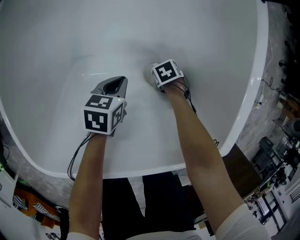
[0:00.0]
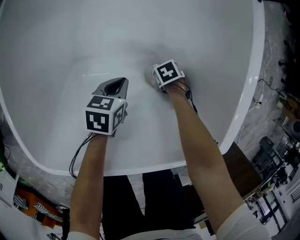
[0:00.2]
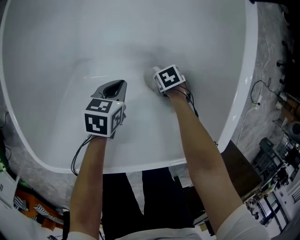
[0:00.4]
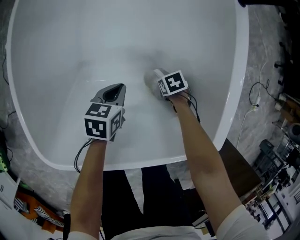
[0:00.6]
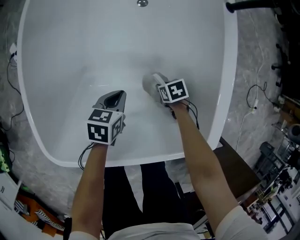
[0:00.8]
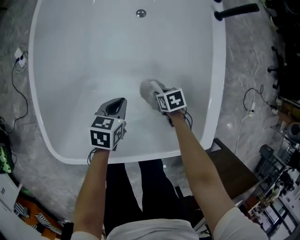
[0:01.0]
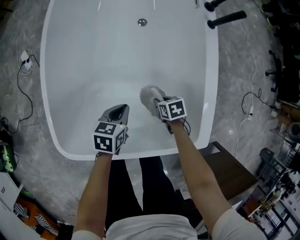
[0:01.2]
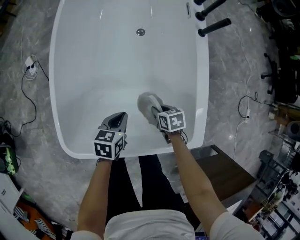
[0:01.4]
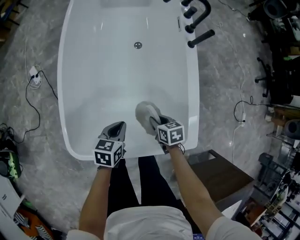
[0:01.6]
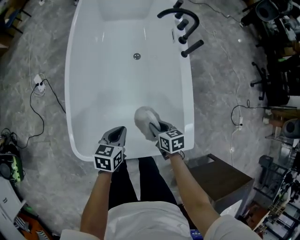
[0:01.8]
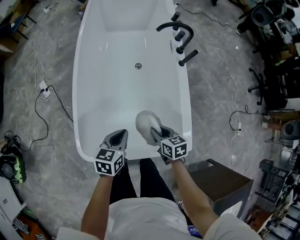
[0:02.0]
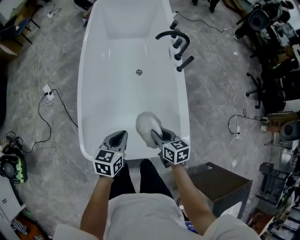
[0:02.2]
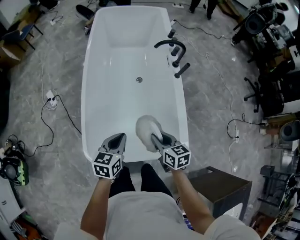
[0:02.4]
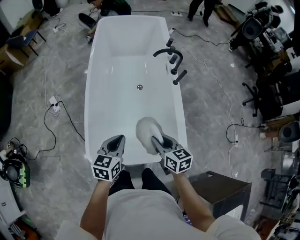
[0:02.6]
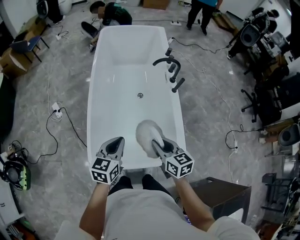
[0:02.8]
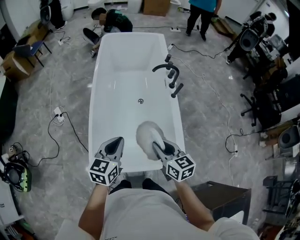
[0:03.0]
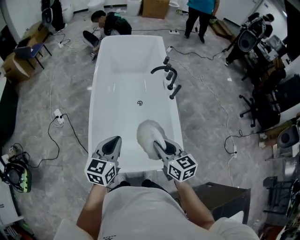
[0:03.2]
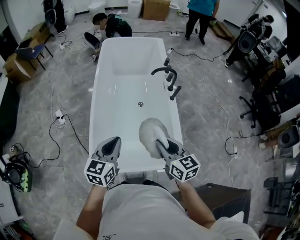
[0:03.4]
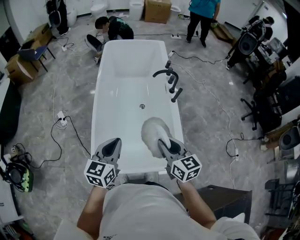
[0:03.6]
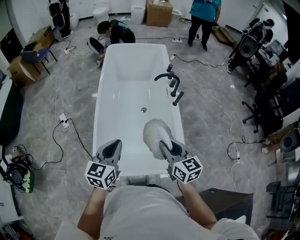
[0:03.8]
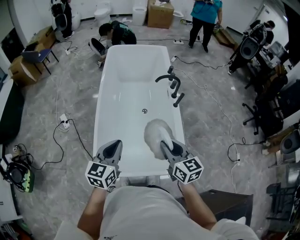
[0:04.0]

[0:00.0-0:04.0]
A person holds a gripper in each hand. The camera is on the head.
0.0 to 1.4 s: The left gripper moves upward, some 20 cm.
1.4 to 2.6 s: The left gripper heads upward, covering about 30 cm, and turns by some 20 degrees.
2.6 to 4.0 s: The left gripper moves upward, some 15 cm.

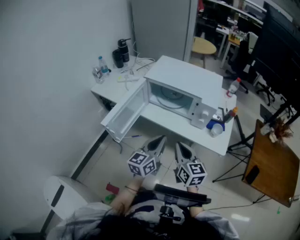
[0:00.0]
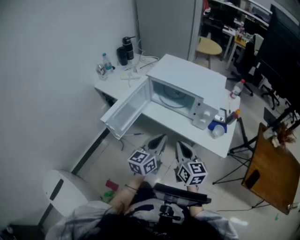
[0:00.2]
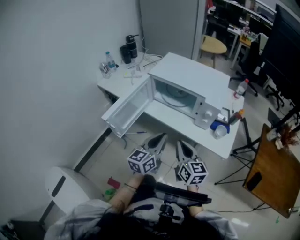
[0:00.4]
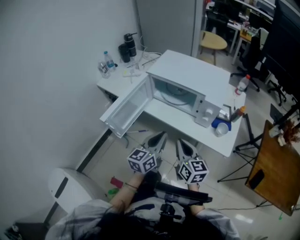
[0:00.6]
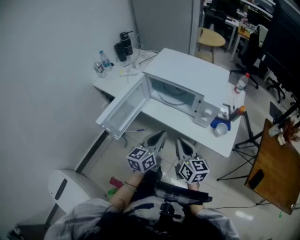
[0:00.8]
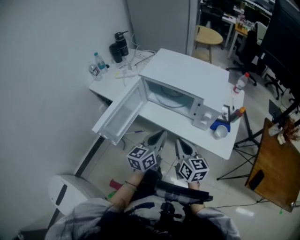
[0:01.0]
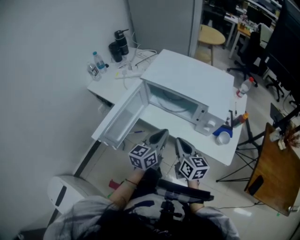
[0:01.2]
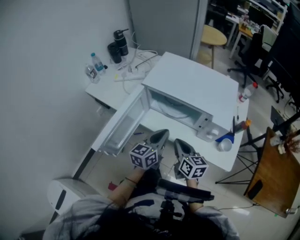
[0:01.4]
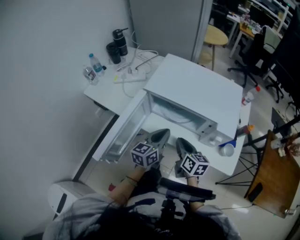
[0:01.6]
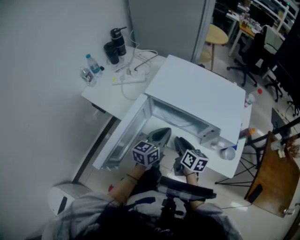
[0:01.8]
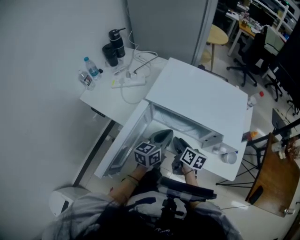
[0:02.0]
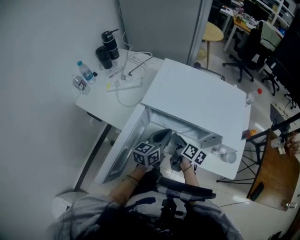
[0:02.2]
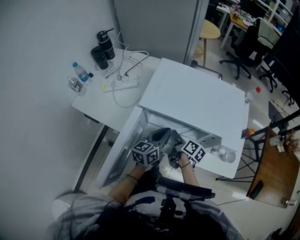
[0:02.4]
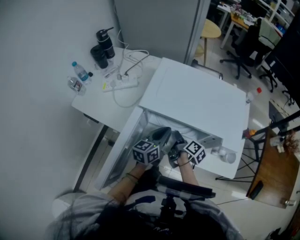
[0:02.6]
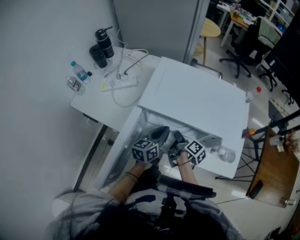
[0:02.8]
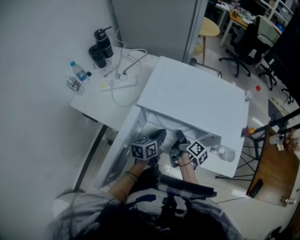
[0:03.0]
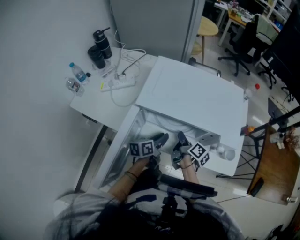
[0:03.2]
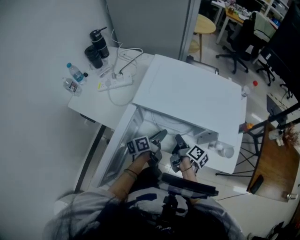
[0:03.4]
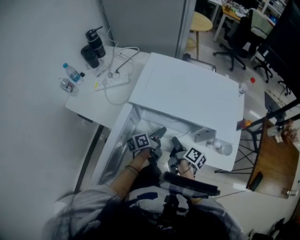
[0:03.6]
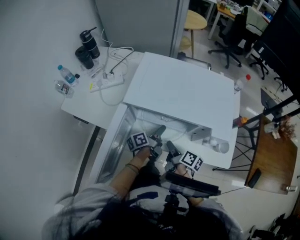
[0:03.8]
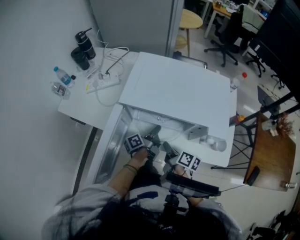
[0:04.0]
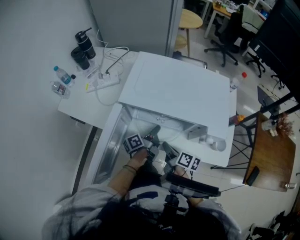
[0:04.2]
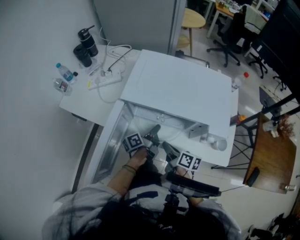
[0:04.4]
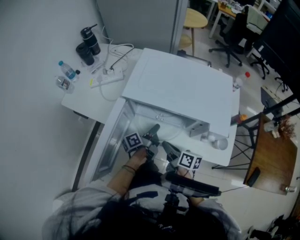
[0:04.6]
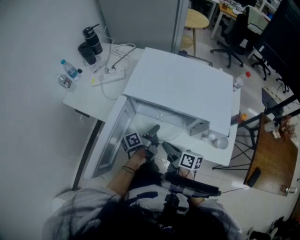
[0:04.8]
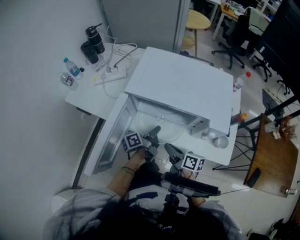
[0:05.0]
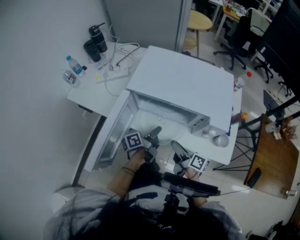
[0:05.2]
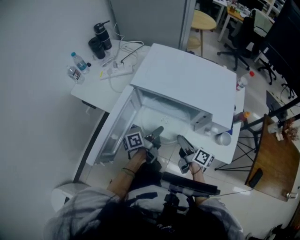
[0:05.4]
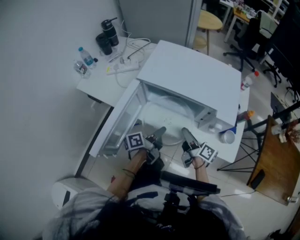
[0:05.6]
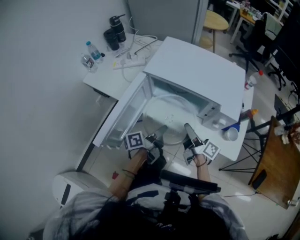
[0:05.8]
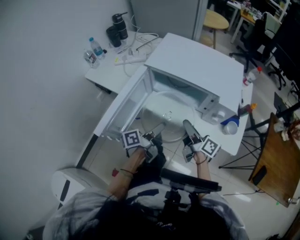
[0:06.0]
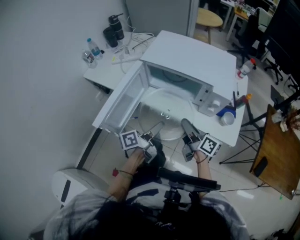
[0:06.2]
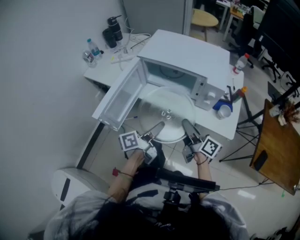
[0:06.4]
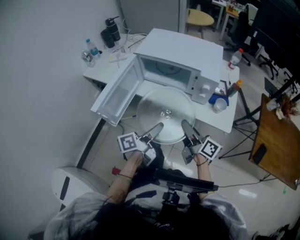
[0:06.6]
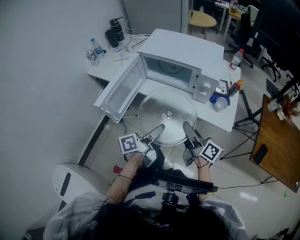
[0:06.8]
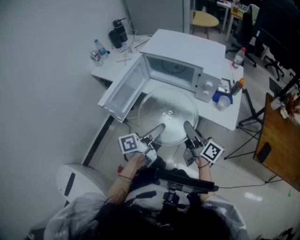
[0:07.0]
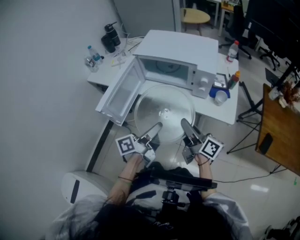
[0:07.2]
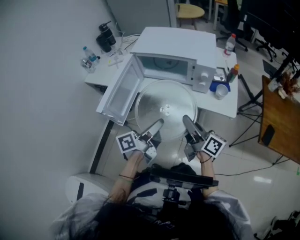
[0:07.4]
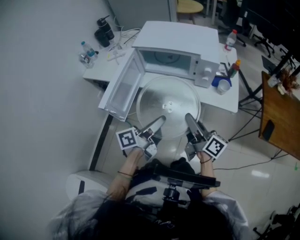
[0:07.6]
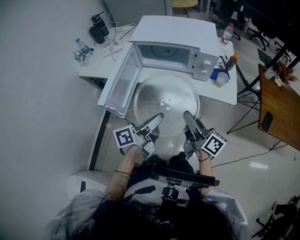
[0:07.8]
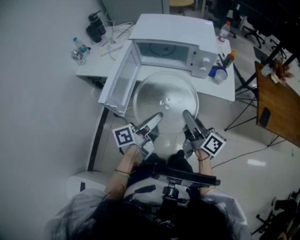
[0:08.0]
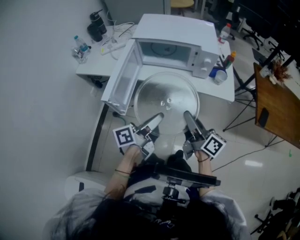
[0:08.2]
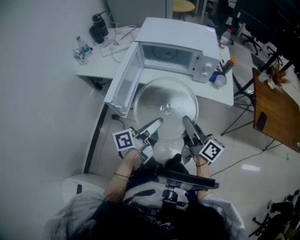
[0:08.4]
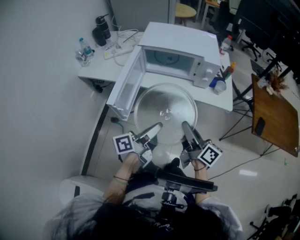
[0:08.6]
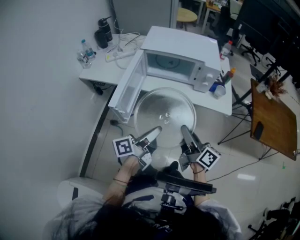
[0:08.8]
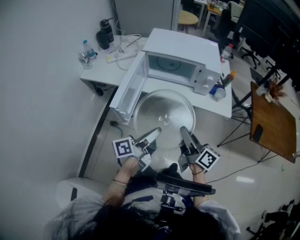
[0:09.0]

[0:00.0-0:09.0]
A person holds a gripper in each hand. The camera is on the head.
0.0 to 1.6 s: The right gripper shifts approximately 20 cm forward and downward, and swivels approximately 20 degrees. The left gripper goes approximately 20 cm forward.
1.6 to 3.0 s: Both grippers move forward and downward, some 10 cm. The right gripper rotates around the line of its fingers by approximately 50 degrees, clockwise from behind, and opens, then closes once more.
3.0 to 4.4 s: The right gripper goes approximately 10 cm backward, and swivels some 30 degrees. Meanwhile the left gripper rolls counterclockwise, seen from behind, by roughly 40 degrees, and opens and closes again.
4.4 to 6.0 s: The right gripper is displaced upward by approximately 10 cm, and changes its angle by approximately 30 degrees. The left gripper goes roughly 20 cm backward and upward.
6.0 to 7.6 s: The left gripper heads backward and upward, covering approximately 20 cm. Meanwhile the right gripper shifts approximately 20 cm backward.
7.6 to 9.0 s: The left gripper shifts approximately 10 cm to the left and backward. Meanwhile the right gripper shifts approximately 10 cm backward and to the left.

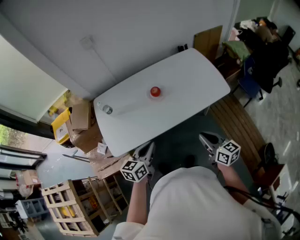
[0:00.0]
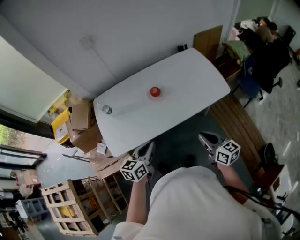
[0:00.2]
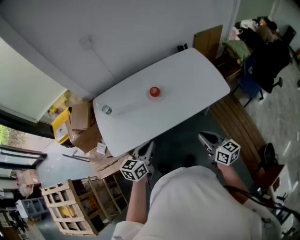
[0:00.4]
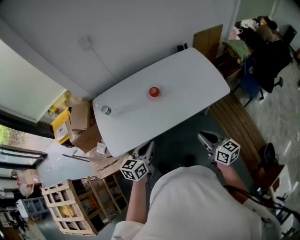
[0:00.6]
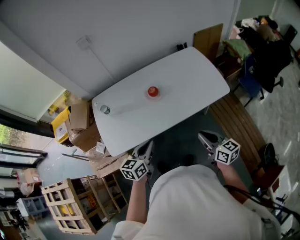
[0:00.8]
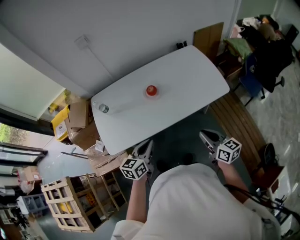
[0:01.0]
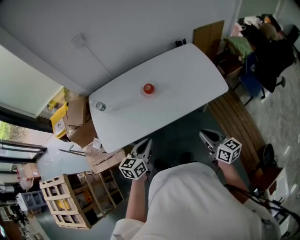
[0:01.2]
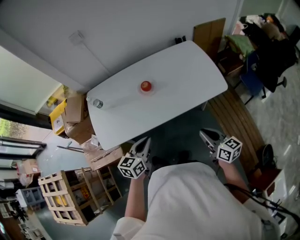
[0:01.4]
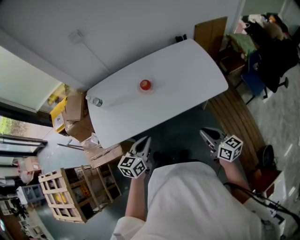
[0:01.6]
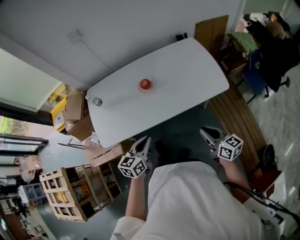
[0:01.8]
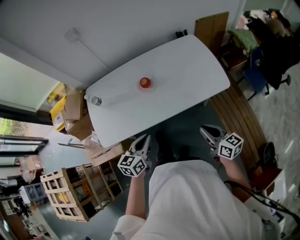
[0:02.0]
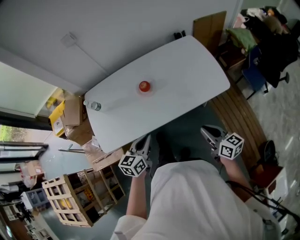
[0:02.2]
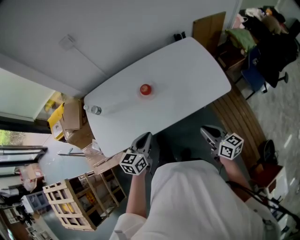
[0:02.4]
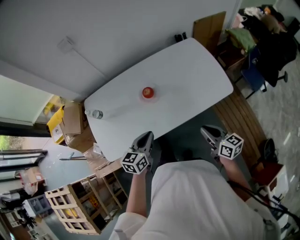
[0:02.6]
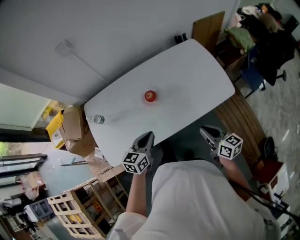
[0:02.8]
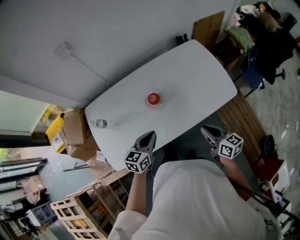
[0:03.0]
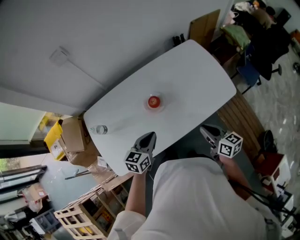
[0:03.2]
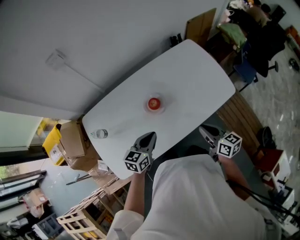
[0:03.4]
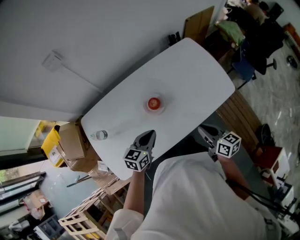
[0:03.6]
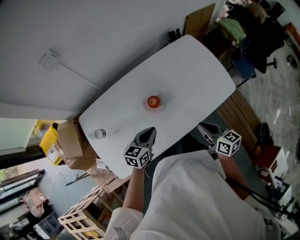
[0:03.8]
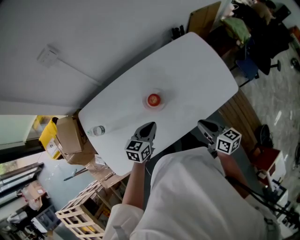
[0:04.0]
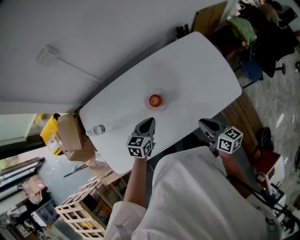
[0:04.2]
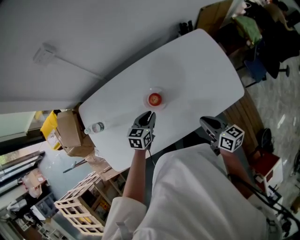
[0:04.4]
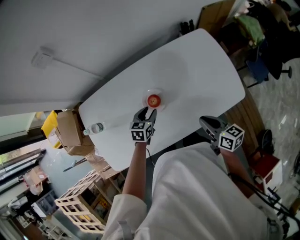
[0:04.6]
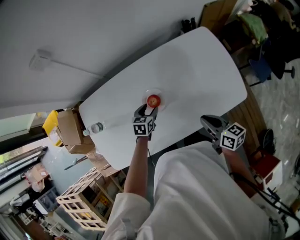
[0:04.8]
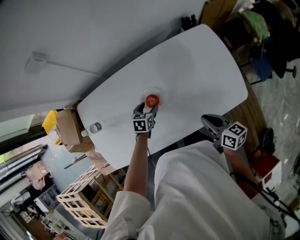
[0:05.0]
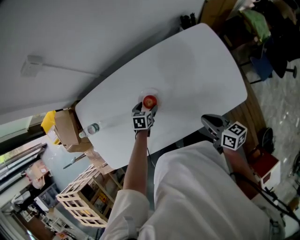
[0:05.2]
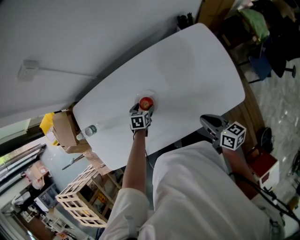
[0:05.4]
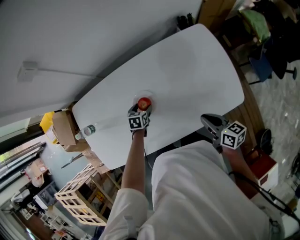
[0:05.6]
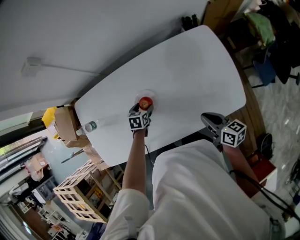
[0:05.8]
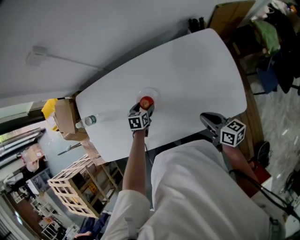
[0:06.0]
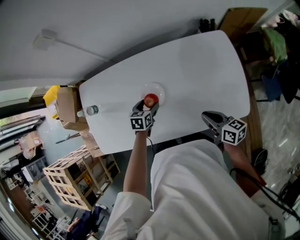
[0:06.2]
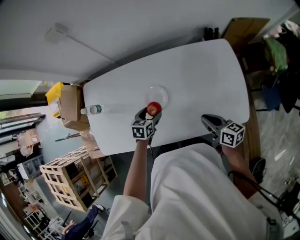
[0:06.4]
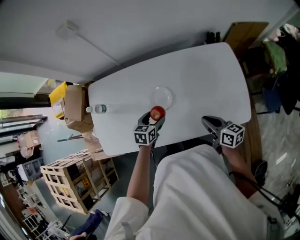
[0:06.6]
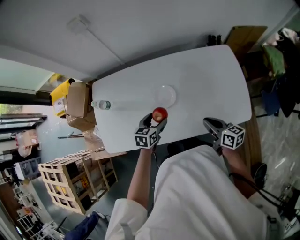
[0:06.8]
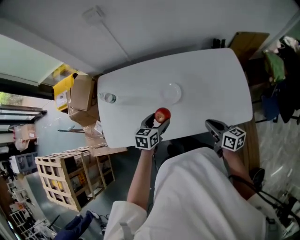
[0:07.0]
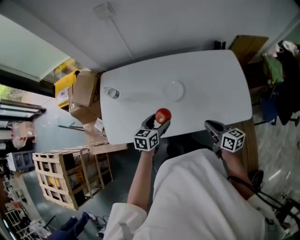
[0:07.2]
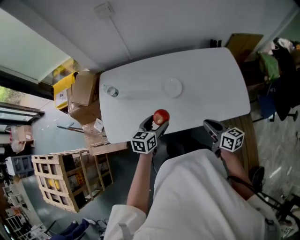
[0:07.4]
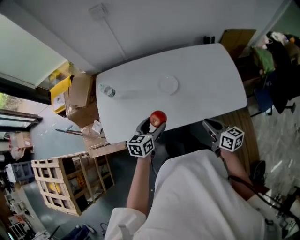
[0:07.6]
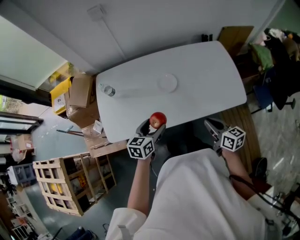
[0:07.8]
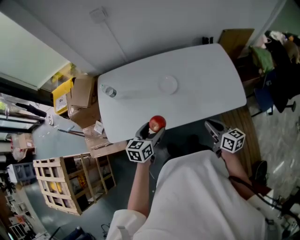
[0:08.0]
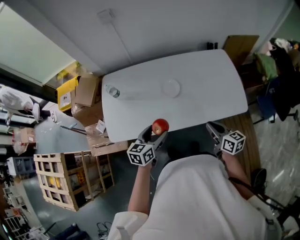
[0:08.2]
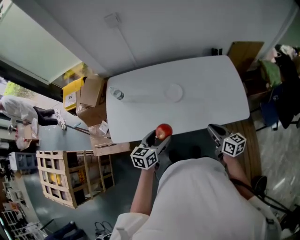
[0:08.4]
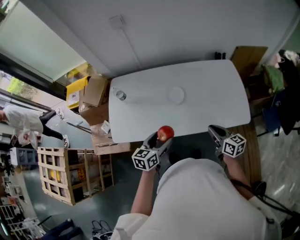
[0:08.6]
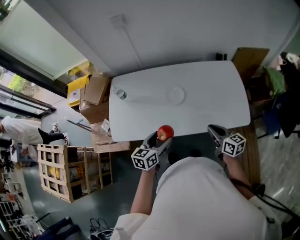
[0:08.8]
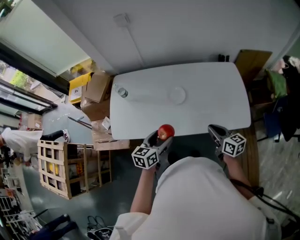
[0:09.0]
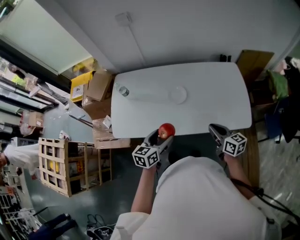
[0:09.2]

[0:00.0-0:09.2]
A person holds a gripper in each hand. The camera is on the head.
0.0 to 1.6 s: The grippers both shift to the right by about 10 cm.
1.6 to 3.0 s: The right gripper goes roughly 15 cm forward and to the left. The left gripper is displaced forward by some 15 cm.
3.0 to 4.6 s: The right gripper moves forward, approximately 10 cm; the left gripper is displaced forward and downward by roughly 20 cm, and opens up.
4.6 to 6.2 s: The right gripper goes roughly 10 cm to the right and forward, while the left gripper opens its fingers.
6.2 to 7.6 s: The right gripper shifts some 20 cm backward and to the left; the left gripper goes some 25 cm backward, upward and to the left, and turns by approximately 20 degrees.
7.6 to 9.2 s: The right gripper shifts by about 5 cm, while the left gripper shifts about 5 cm backward.

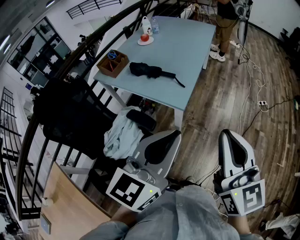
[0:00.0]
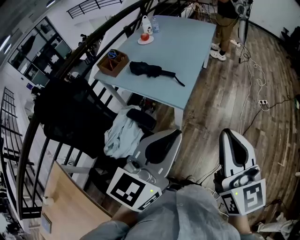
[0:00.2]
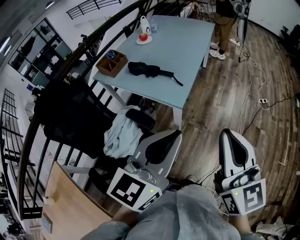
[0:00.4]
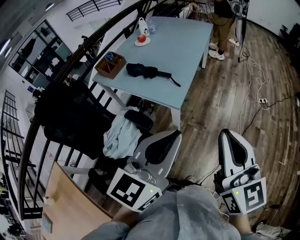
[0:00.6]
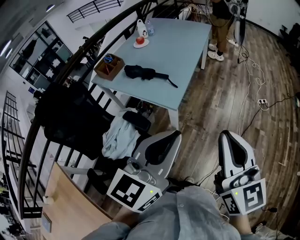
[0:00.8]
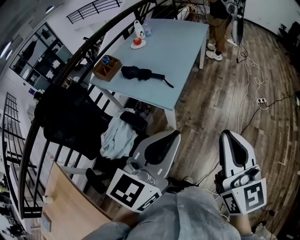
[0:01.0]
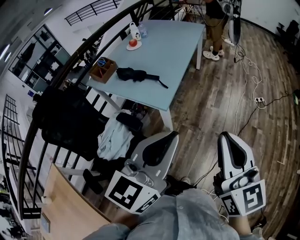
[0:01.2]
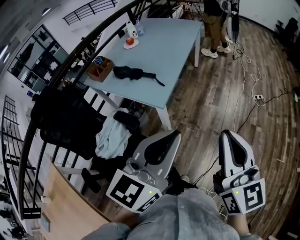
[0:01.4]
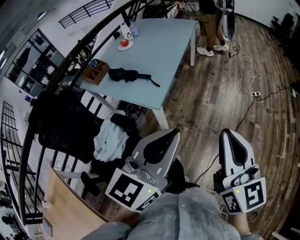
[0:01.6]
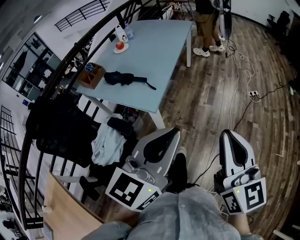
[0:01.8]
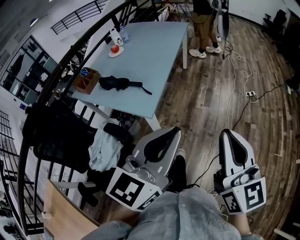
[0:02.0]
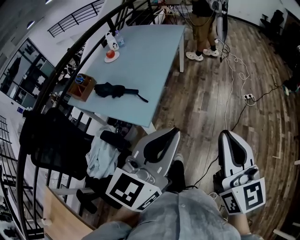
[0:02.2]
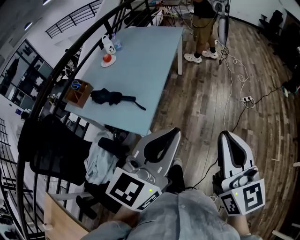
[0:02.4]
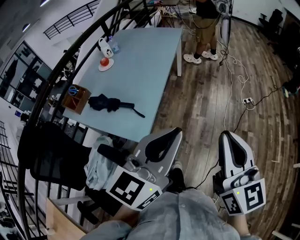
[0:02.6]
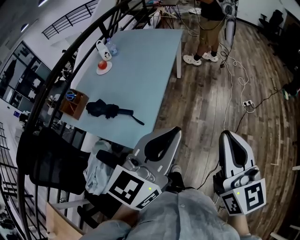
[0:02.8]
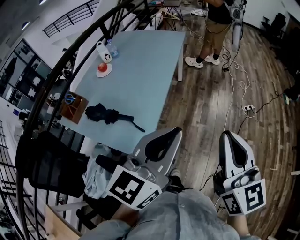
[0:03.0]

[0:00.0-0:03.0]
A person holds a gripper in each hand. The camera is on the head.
0.0 to 1.6 s: Both grippers move to the right, about 15 cm.
1.6 to 3.0 s: The two grippers go roughly 25 cm forward.
